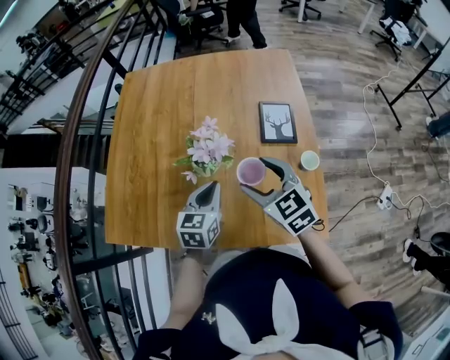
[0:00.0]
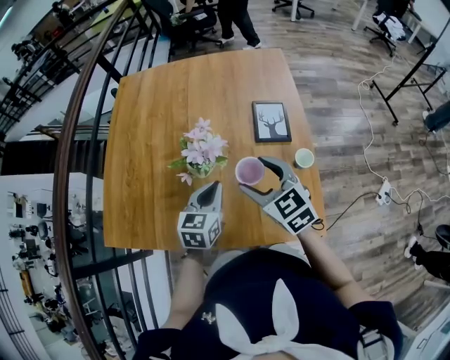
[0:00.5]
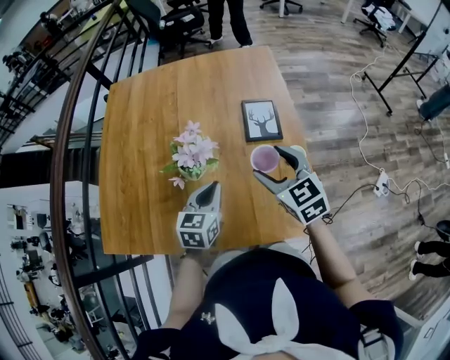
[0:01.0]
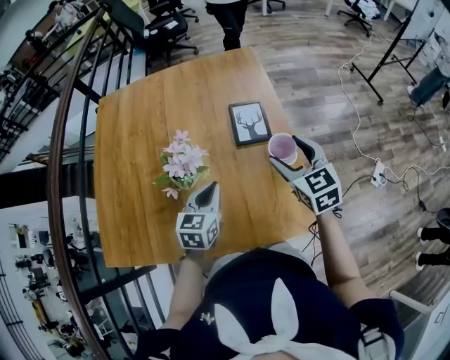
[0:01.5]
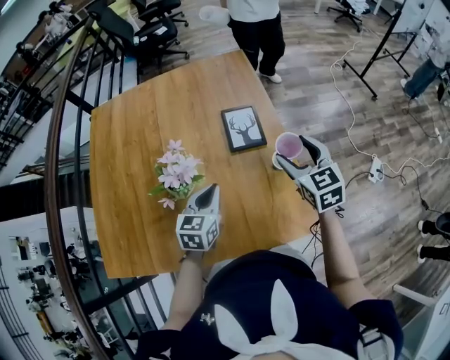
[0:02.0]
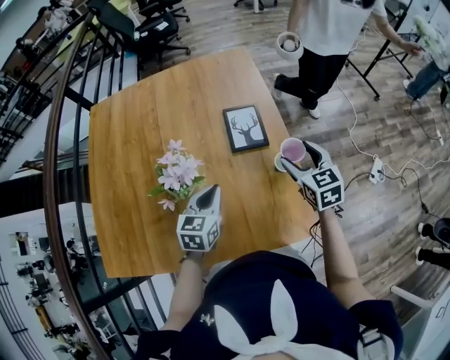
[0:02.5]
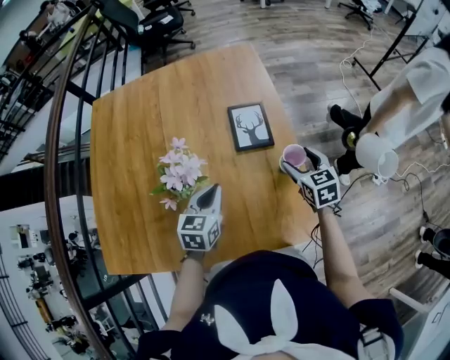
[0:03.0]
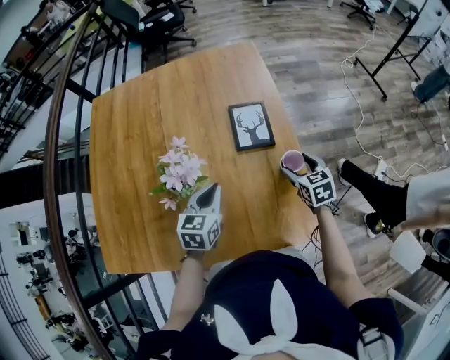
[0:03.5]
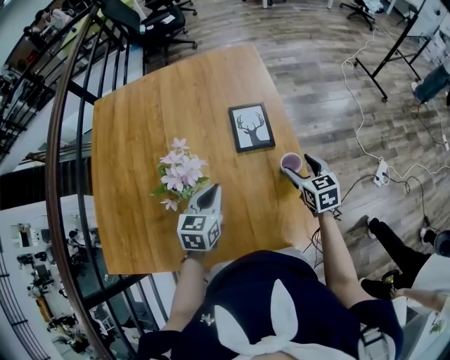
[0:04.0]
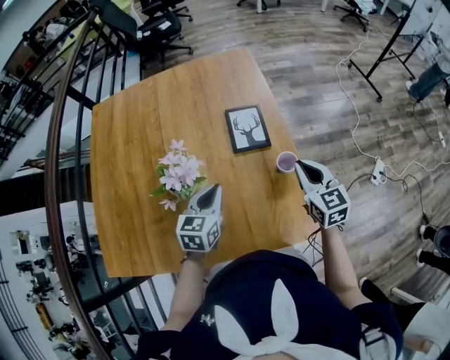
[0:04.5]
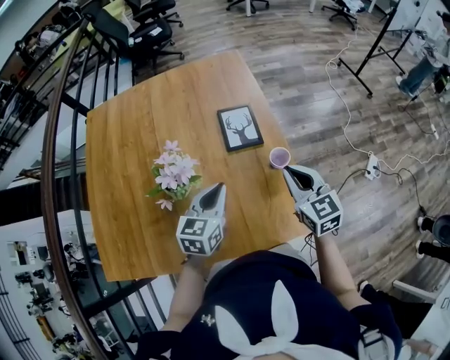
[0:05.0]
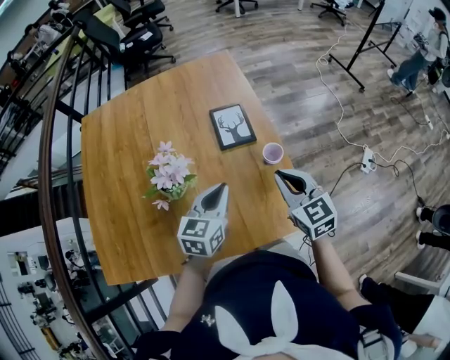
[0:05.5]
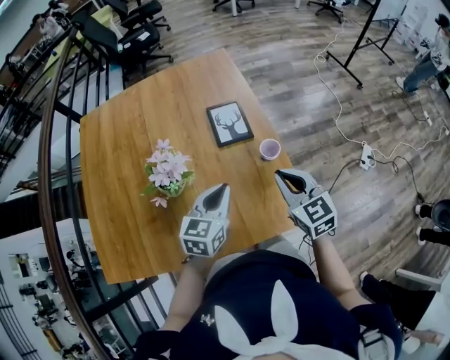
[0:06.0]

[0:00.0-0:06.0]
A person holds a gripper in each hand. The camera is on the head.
0:00.0 to 0:02.0: The right gripper shifts approximately 20 cm to the right, and changes its angle by some 30 degrees. The left gripper shifts some 10 cm to the right.
0:02.0 to 0:04.0: The right gripper heads downward, covering some 15 cm.
0:04.0 to 0:06.0: The right gripper moves backward and upward, some 15 cm, and closes. Meanwhile the left gripper shifts about 10 cm to the right, backward and upward.

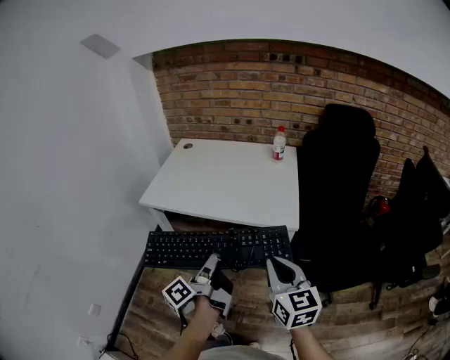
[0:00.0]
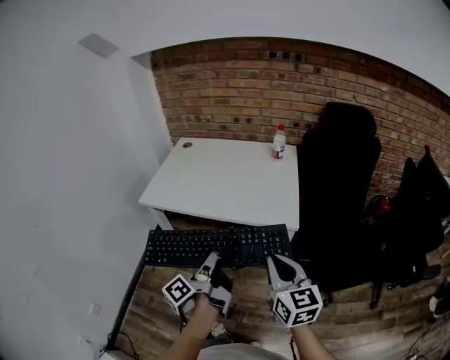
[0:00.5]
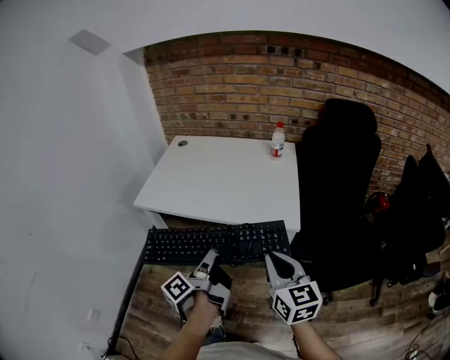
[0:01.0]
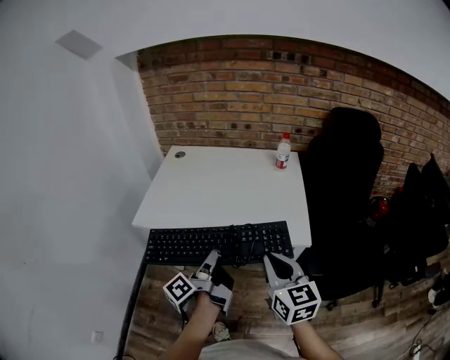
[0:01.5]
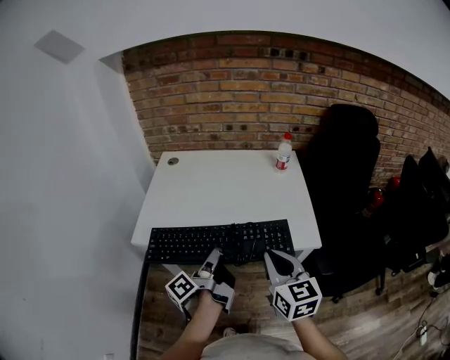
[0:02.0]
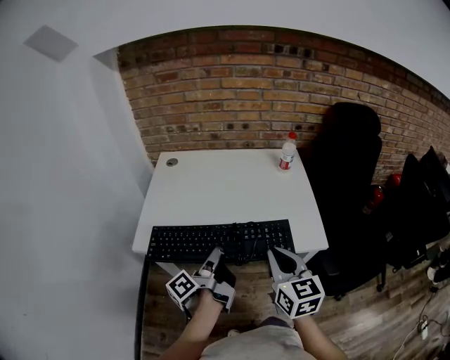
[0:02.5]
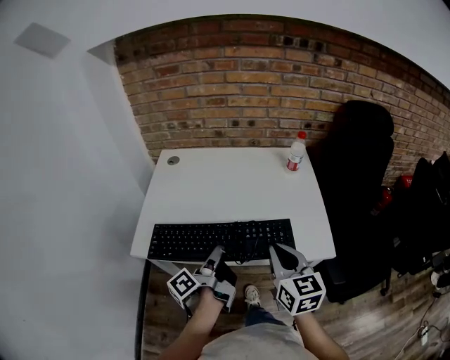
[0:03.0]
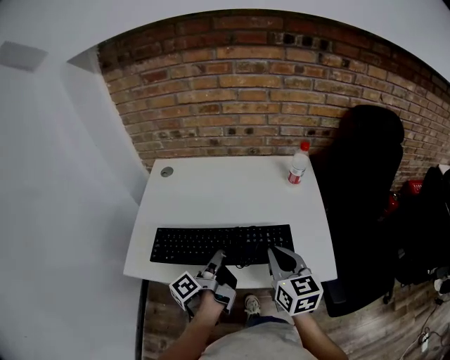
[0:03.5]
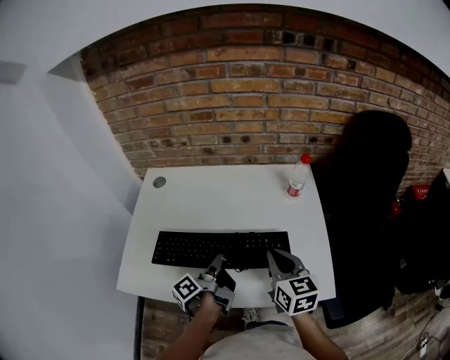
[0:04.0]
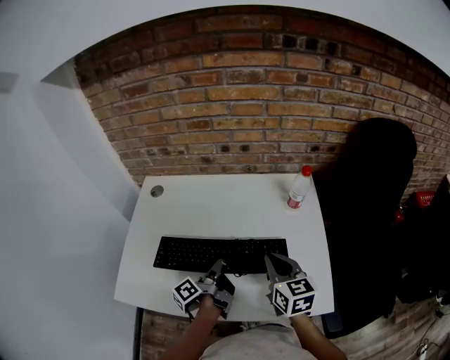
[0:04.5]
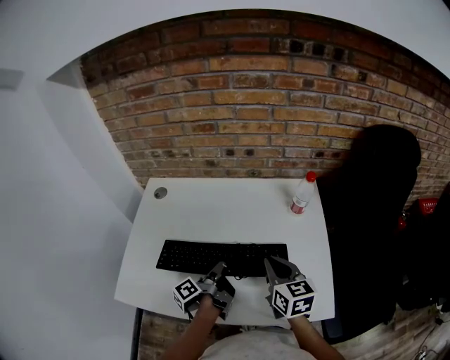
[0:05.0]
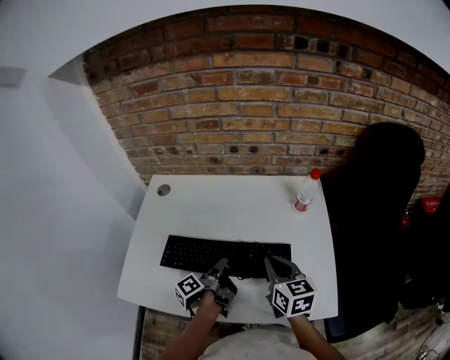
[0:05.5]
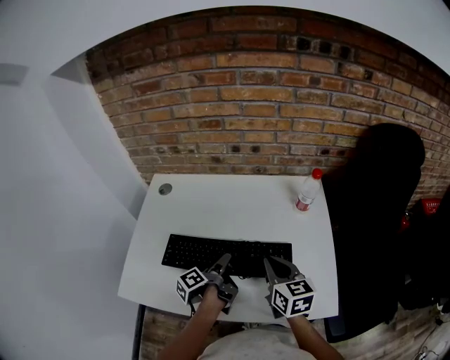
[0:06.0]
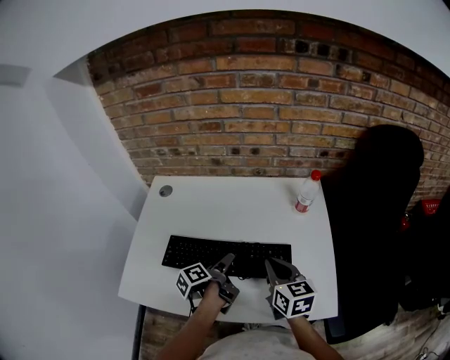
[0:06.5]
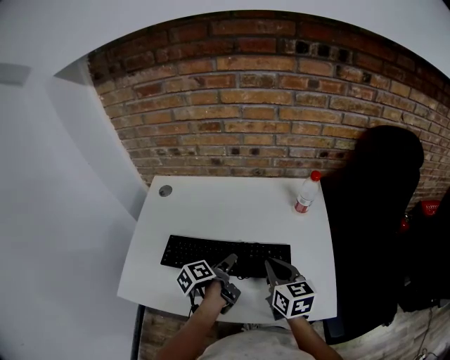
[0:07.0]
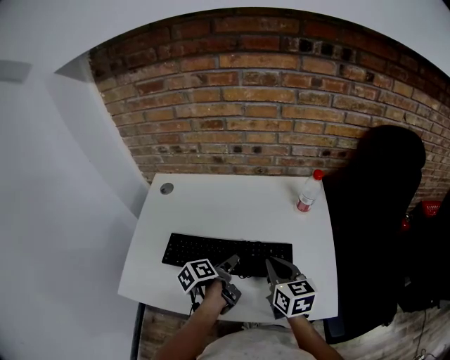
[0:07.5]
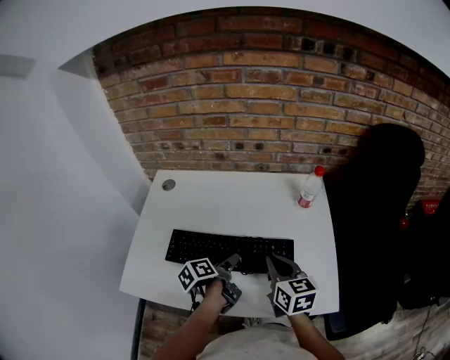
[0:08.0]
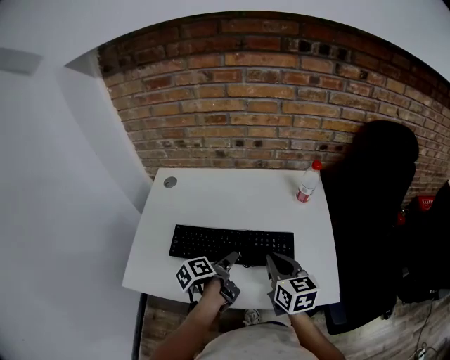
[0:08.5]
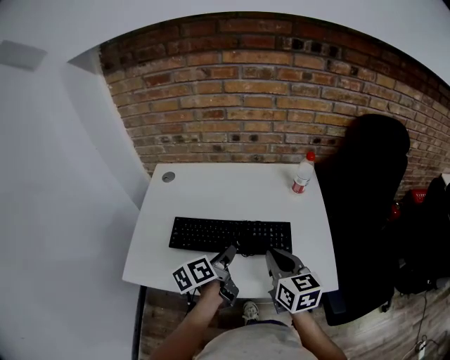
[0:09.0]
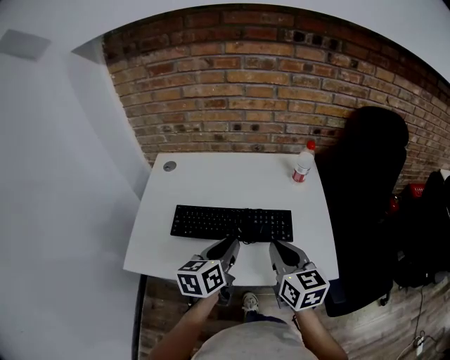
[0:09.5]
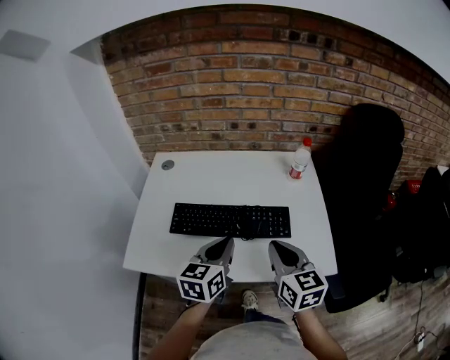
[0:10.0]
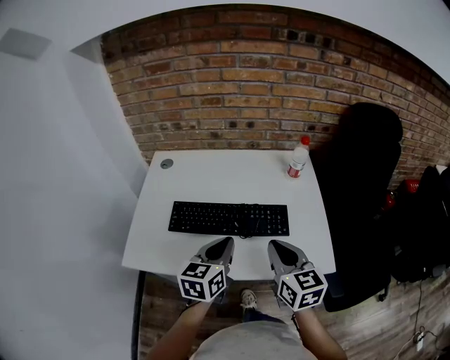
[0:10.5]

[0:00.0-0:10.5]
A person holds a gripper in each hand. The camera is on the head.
0:00.0 to 0:02.0: The right gripper moves approximately 25 cm.
0:02.0 to 0:04.0: The right gripper changes place by approximately 30 cm.
0:04.0 to 0:06.5: The right gripper shifts by some 5 cm.
0:08.5 to 0:10.5: The right gripper ends up some 10 cm from where it was.

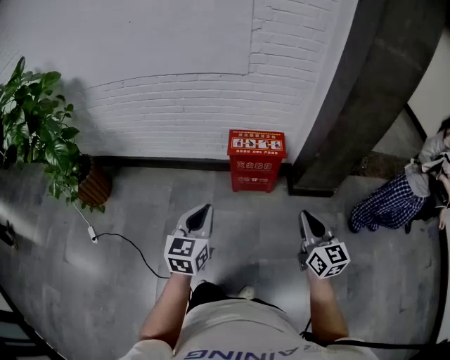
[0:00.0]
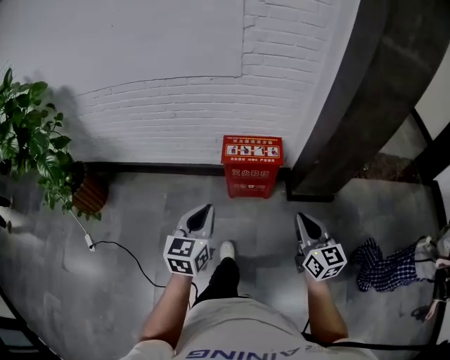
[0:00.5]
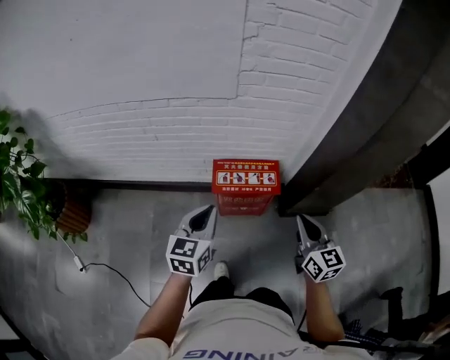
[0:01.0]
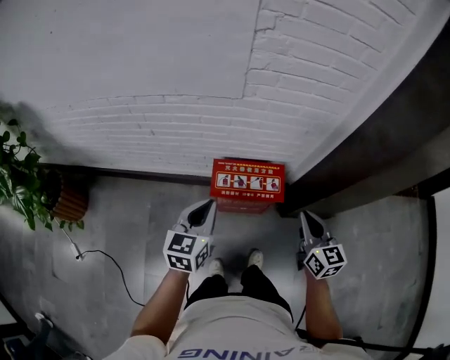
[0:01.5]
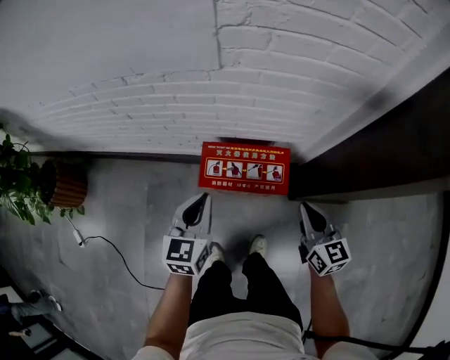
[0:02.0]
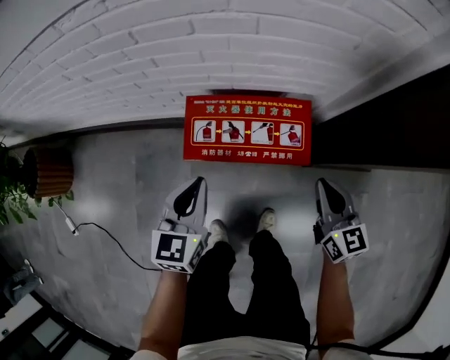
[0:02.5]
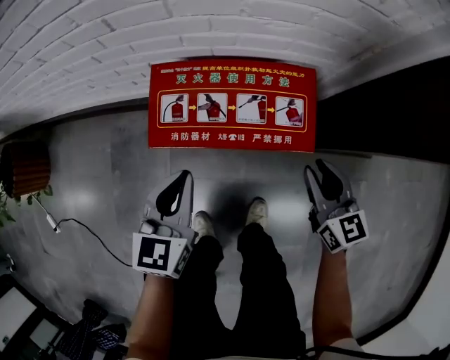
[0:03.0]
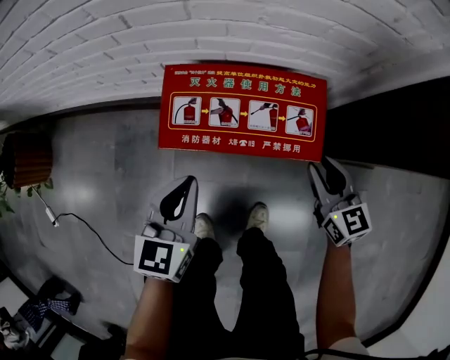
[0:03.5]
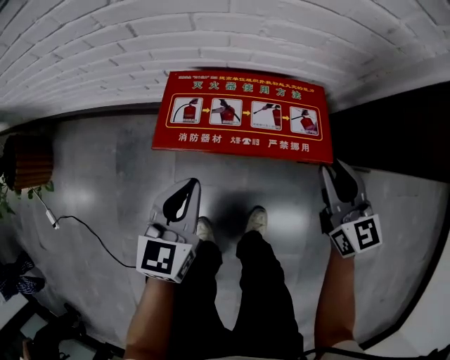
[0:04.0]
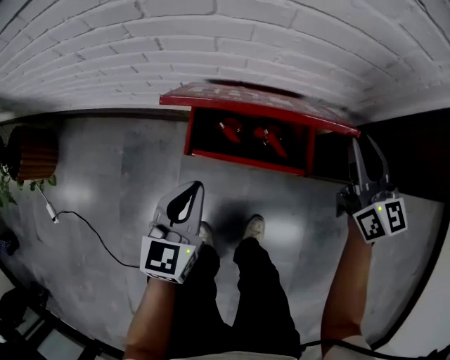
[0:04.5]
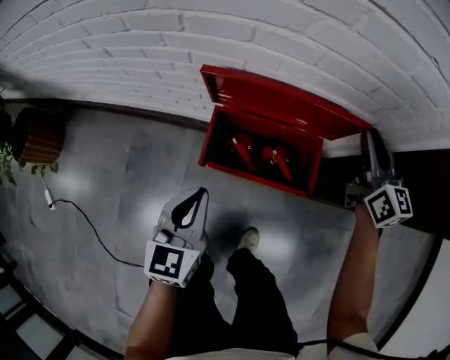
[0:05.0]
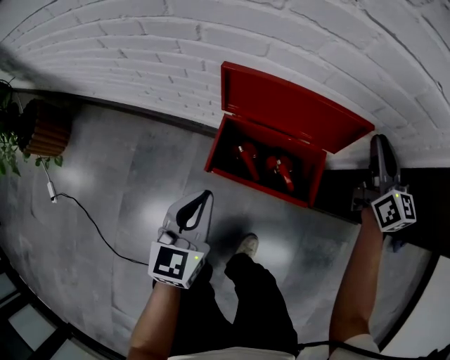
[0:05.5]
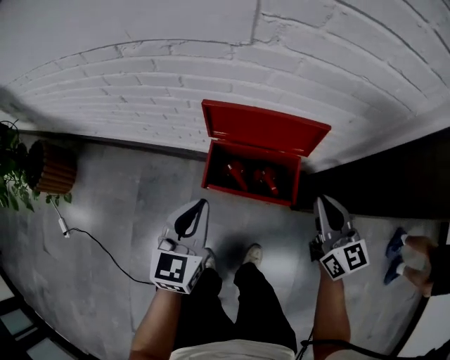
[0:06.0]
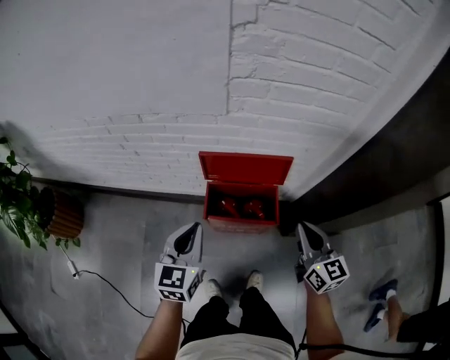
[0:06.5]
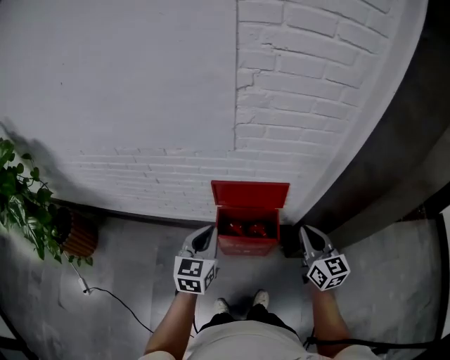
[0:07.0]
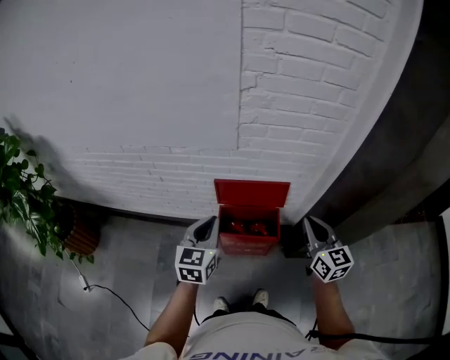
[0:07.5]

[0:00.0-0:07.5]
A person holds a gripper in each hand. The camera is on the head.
0:00.0 to 0:02.0: The two grippers travel together, forward, approximately 40 cm.
0:02.0 to 0:04.0: Both grippers travel together downward, some 20 cm. The right gripper opens up.
0:04.0 to 0:05.5: The left gripper shifts about 10 cm upward. Meanwhile the right gripper goes some 25 cm forward and upward.
0:05.5 to 0:07.5: The left gripper goes some 30 cm upward. Meanwhile the right gripper goes about 35 cm backward and upward.

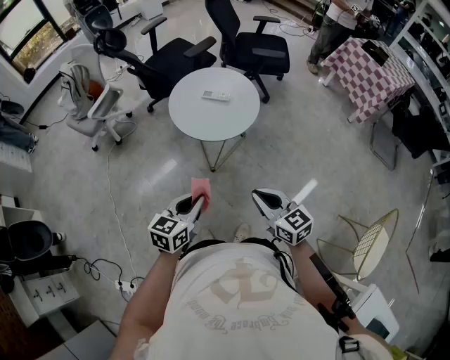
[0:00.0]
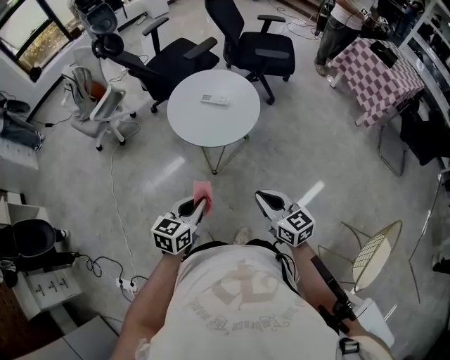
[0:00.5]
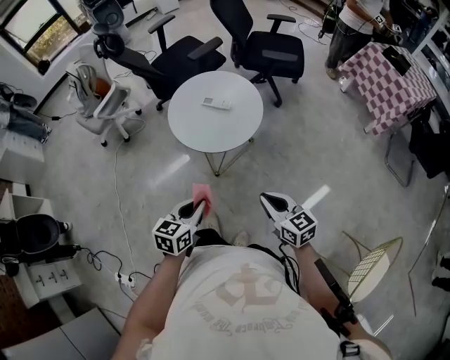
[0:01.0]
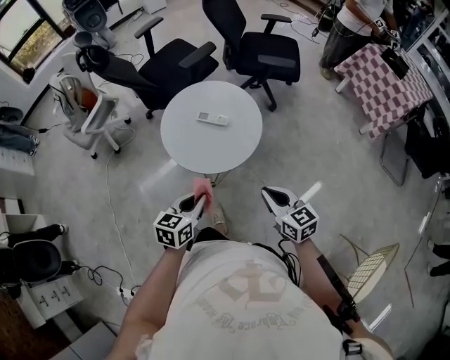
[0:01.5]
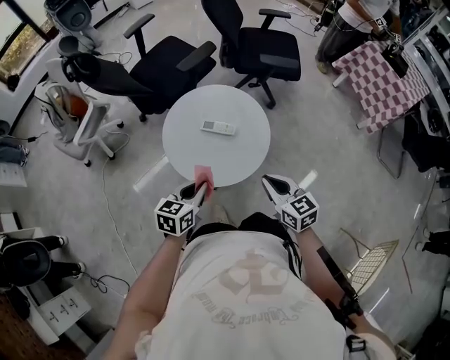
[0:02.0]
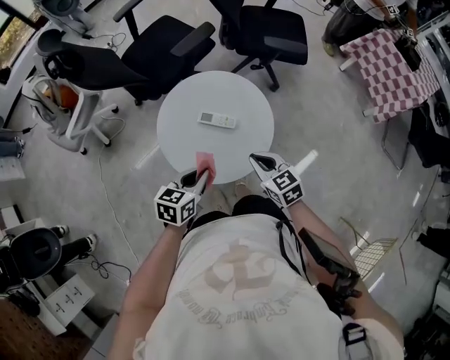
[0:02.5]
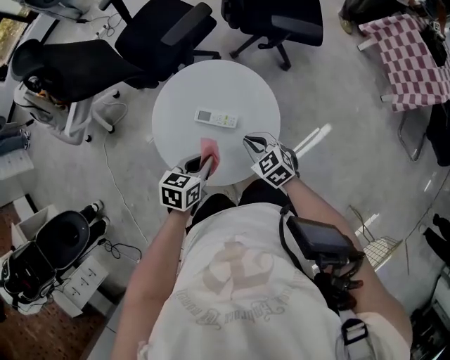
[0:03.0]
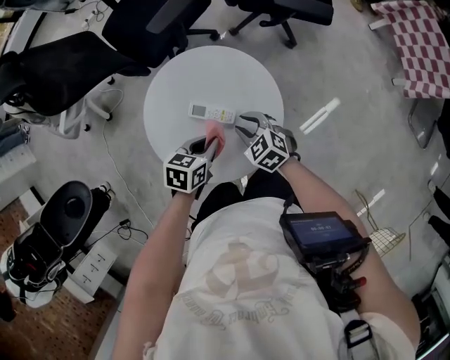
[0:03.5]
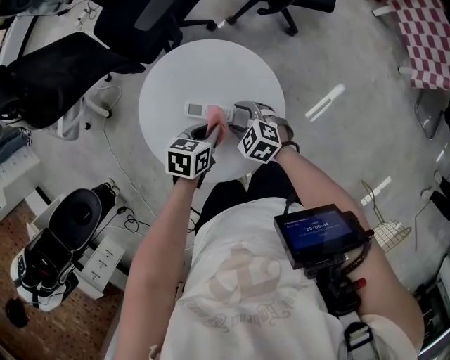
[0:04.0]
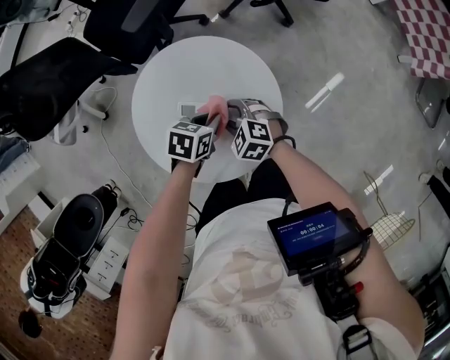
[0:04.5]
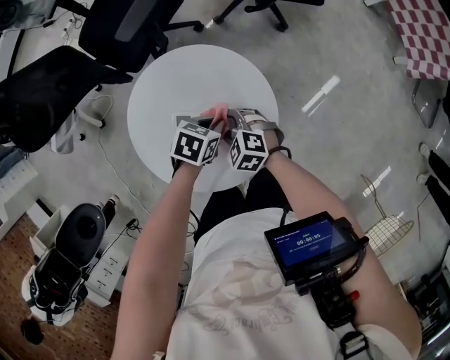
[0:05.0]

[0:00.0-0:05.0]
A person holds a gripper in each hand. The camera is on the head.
0:00.0 to 0:02.5: The grippers both shift forward by approximately 35 cm.
0:02.5 to 0:05.0: The left gripper shifts by about 25 cm, and rotates some 30 degrees. Meanwhile the right gripper moves downward, roughly 15 cm, changes its angle by roughly 30 degrees, and opens its fingers.
